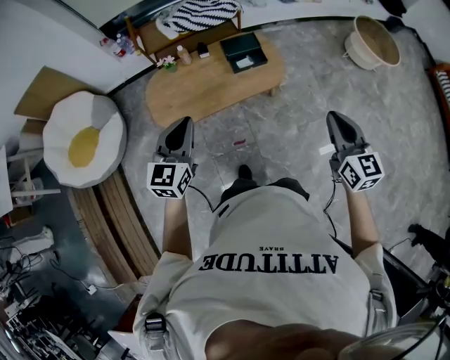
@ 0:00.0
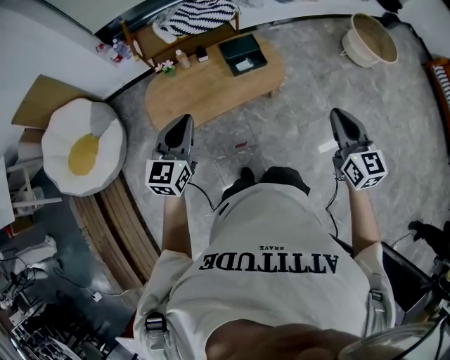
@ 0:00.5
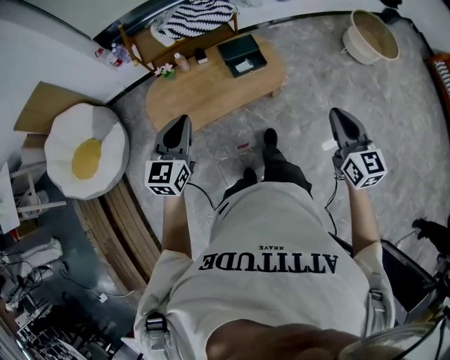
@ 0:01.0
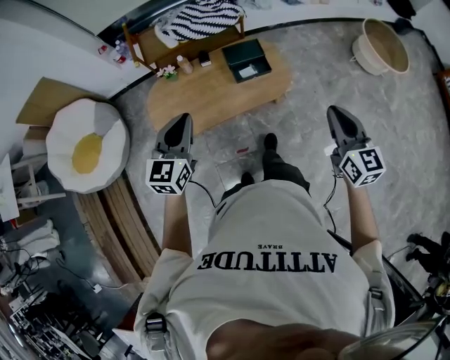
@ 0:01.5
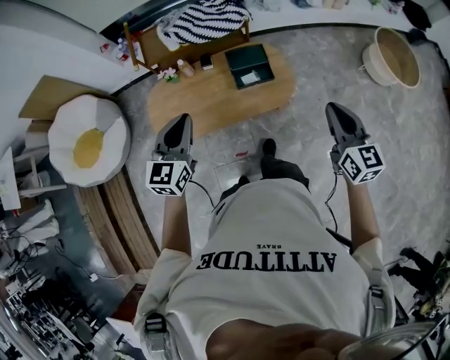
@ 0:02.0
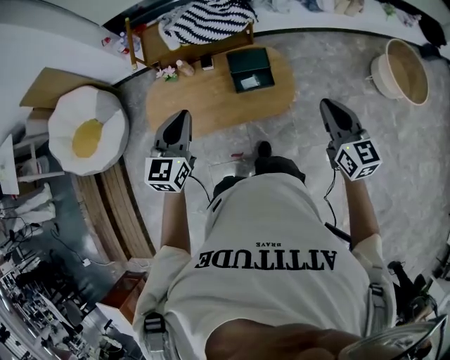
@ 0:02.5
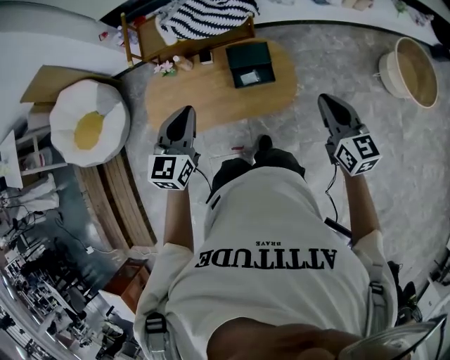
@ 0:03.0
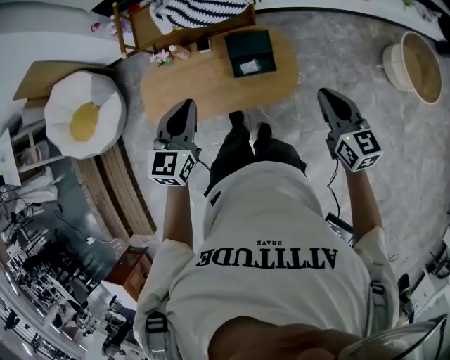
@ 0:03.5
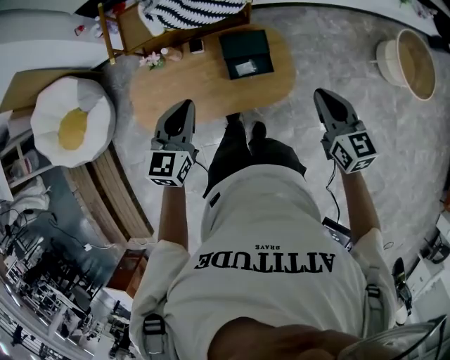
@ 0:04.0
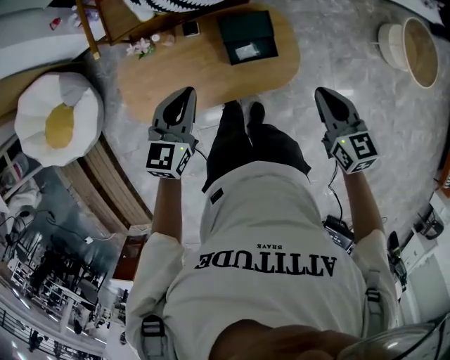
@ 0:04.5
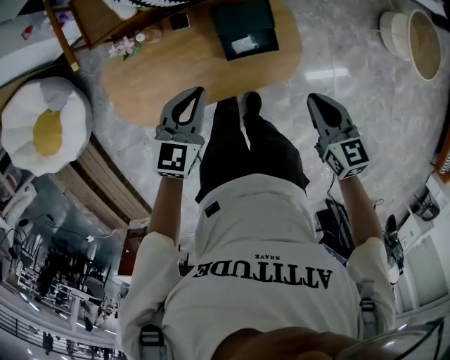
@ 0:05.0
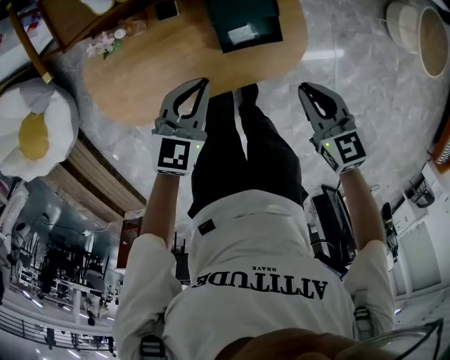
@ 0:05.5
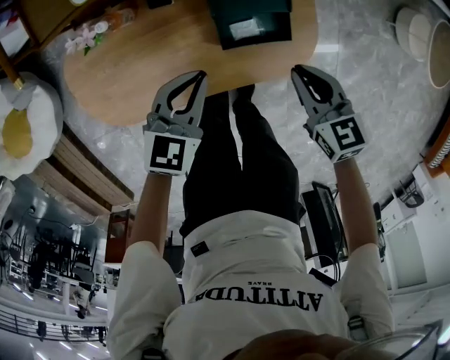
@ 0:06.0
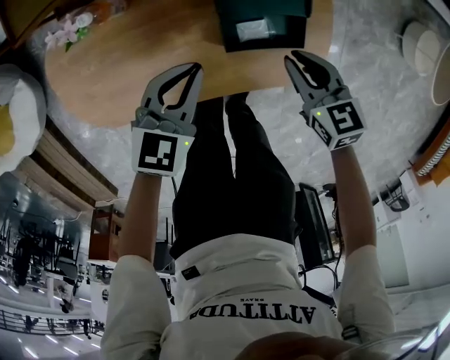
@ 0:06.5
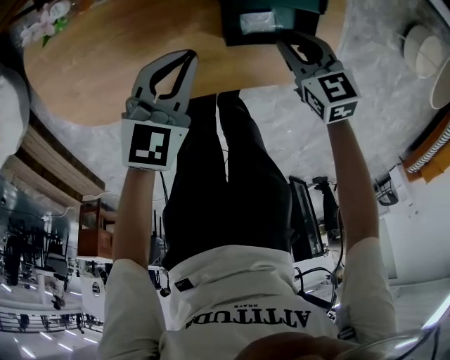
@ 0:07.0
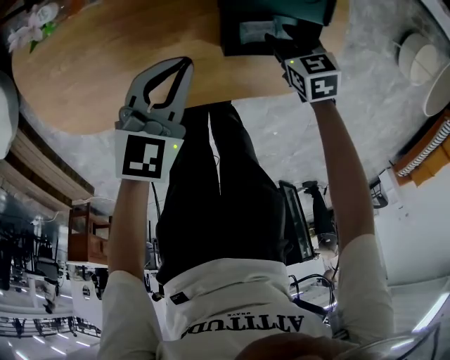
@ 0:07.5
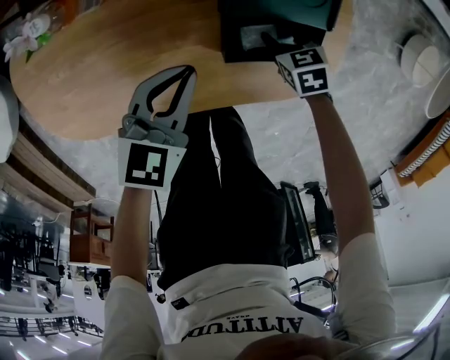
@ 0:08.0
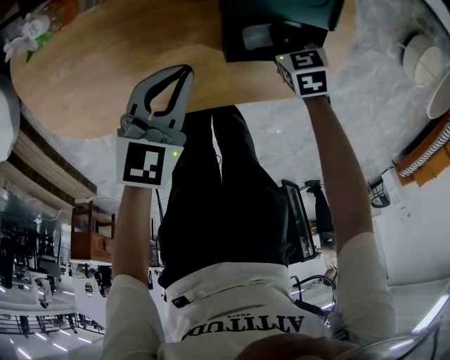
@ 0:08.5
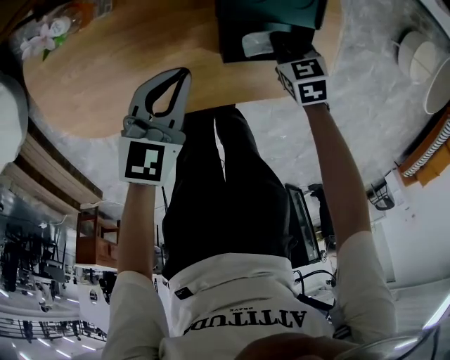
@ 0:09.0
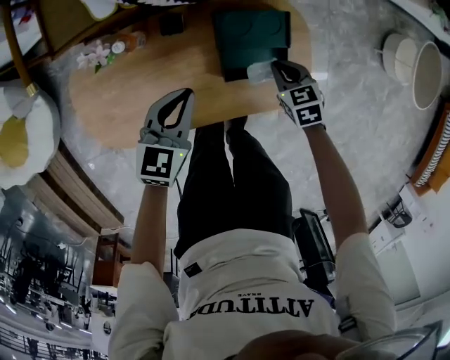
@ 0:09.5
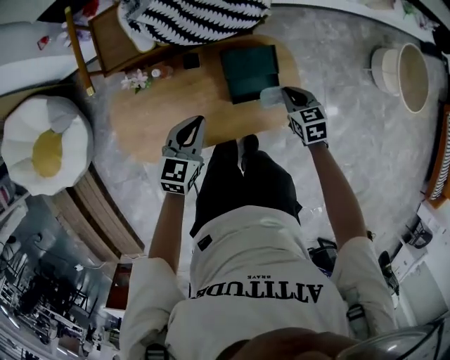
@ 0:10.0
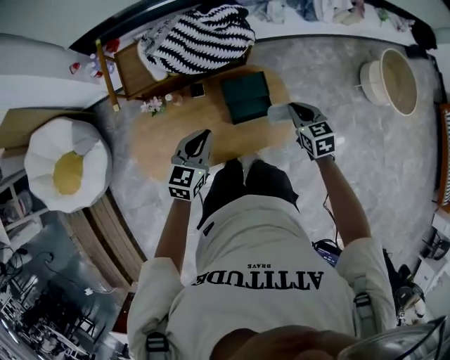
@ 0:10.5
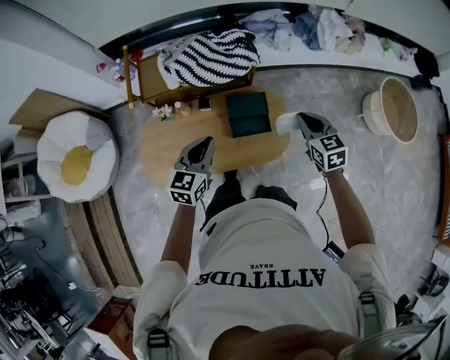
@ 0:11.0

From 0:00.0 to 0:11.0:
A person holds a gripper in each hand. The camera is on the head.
From 0:00.0 to 0:02.0: The grippers both shift forward by some 20 cm.
From 0:02.0 to 0:03.5: The right gripper moves forward and downward, approximately 20 cm; the left gripper heads forward and to the right, covering roughly 15 cm.
From 0:03.5 to 0:05.5: The left gripper moves downward and forward, roughly 35 cm, and swivels approximately 20 degrees; the right gripper heads downward, to the left and forward, covering some 30 cm, and swivels about 20 degrees.
From 0:05.5 to 0:07.5: The right gripper is displaced downward by roughly 40 cm, rotates about 30 degrees, and opens; the left gripper goes roughly 25 cm downward.
From 0:07.5 to 0:09.0: The right gripper closes.
From 0:09.0 to 0:11.0: The two grippers go about 50 cm upward. The right gripper tilts its fingers roughly 30 degrees upward.

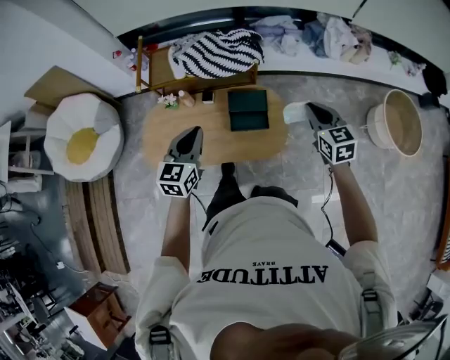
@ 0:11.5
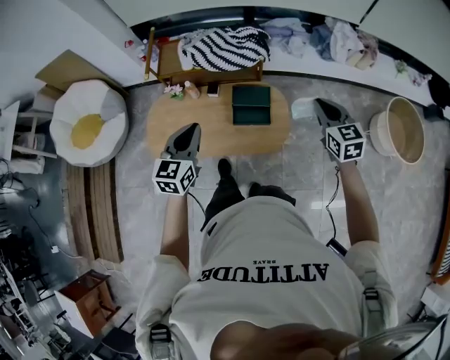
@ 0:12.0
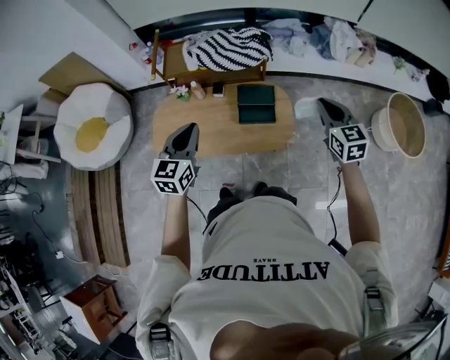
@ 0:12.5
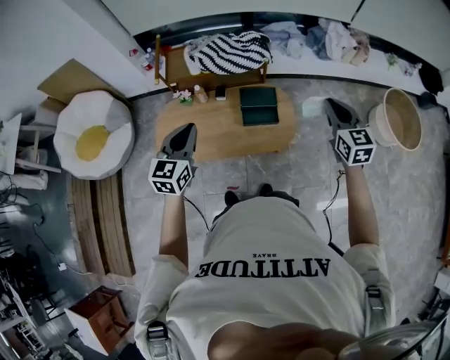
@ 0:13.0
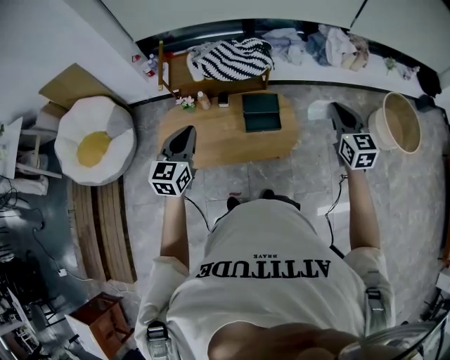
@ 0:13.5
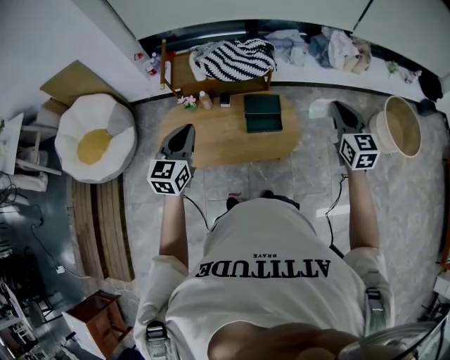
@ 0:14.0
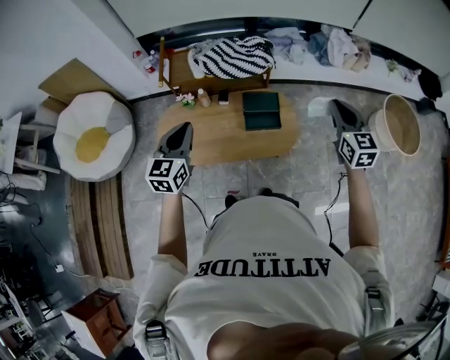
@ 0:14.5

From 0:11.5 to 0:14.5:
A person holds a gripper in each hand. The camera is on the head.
From 0:11.5 to 0:13.0: The left gripper goes some 15 cm backward, to the left and upward; the right gripper shifts approximately 15 cm backward and upward.
From 0:13.0 to 0:14.5: There are only small adjustments of the grippers.

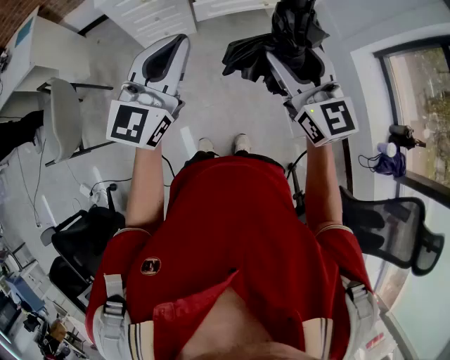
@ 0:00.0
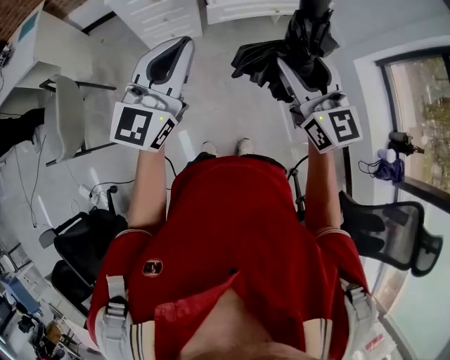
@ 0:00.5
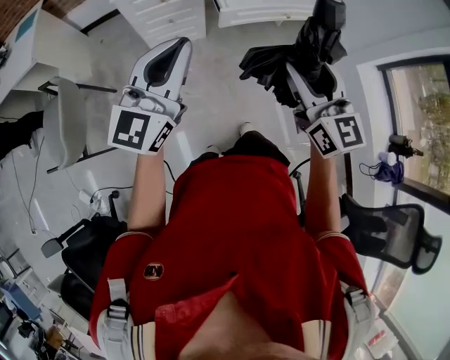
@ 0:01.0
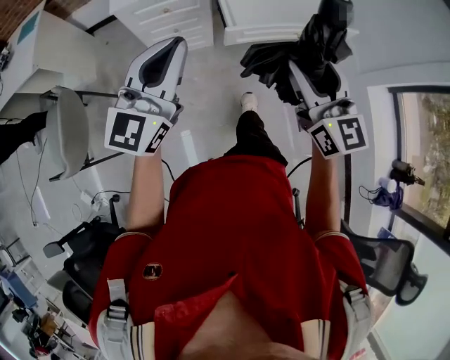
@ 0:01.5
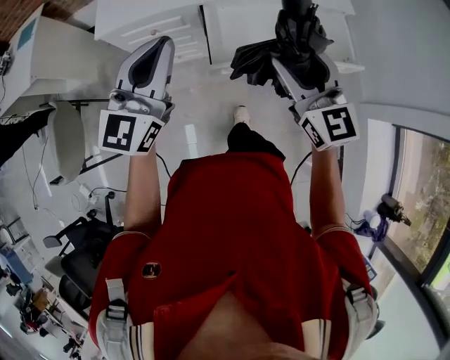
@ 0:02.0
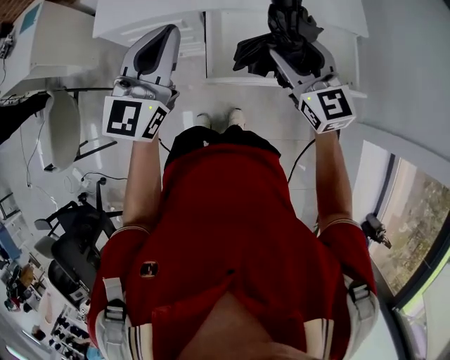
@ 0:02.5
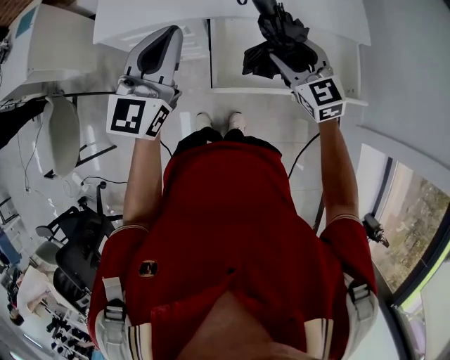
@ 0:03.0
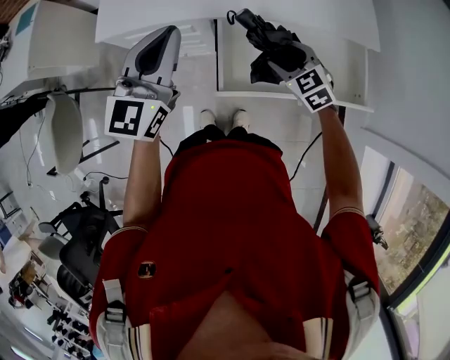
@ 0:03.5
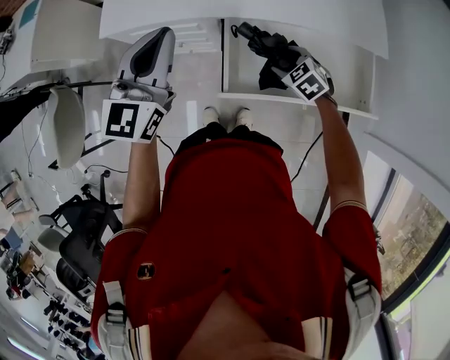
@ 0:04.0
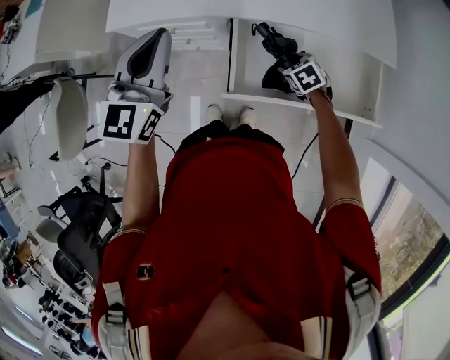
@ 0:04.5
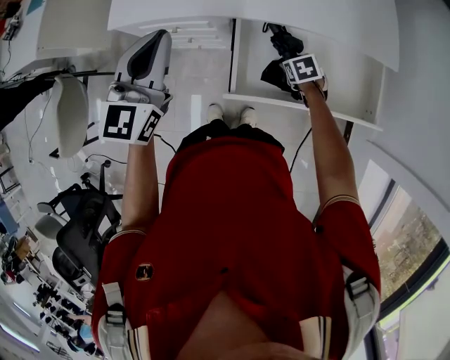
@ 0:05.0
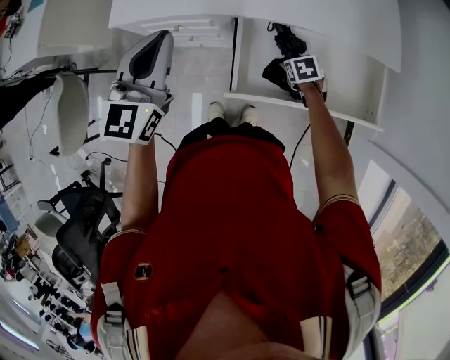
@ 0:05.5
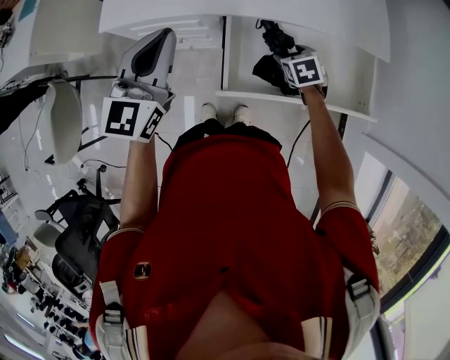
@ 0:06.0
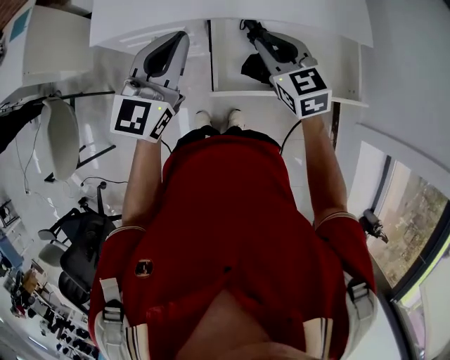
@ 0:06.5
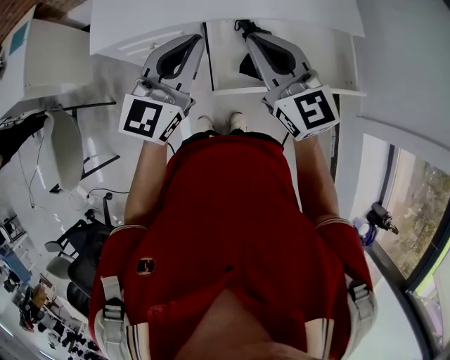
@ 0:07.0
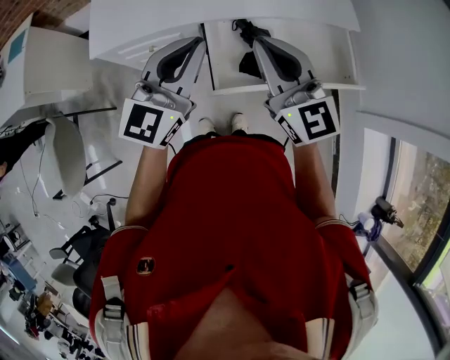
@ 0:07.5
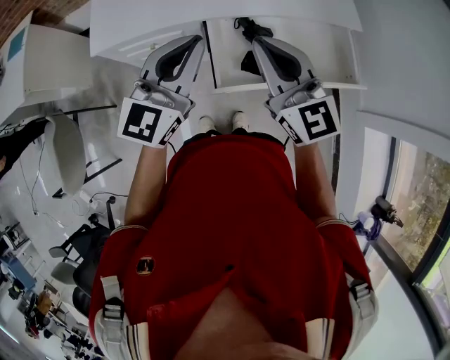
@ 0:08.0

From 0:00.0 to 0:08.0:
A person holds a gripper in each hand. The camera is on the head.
From 0:00.0 to 0:02.0: Both grippers travel together forward, roughly 35 cm.
From 0:02.0 to 0:04.0: The left gripper goes roughly 15 cm forward. Meanwhile the right gripper travels downward and forward by approximately 35 cm, and angles its fingers downward, by approximately 50 degrees.
From 0:04.0 to 0:06.0: The right gripper reaches about 10 cm downward, then returns, and swivels about 30 degrees.
From 0:06.0 to 0:08.0: The right gripper moves upward, roughly 30 cm, points its fingers some 60 degrees further upward, and closes its fingers; the left gripper travels to the right and backward by about 10 cm.

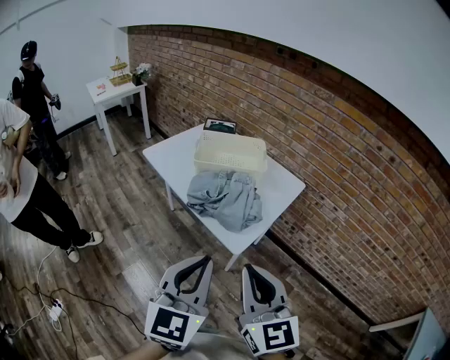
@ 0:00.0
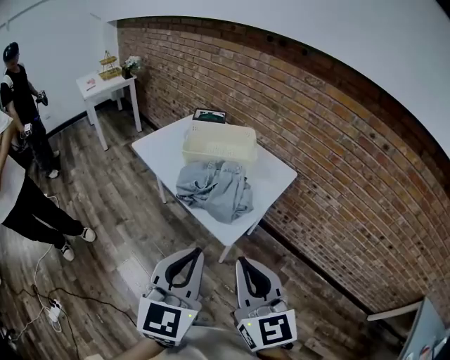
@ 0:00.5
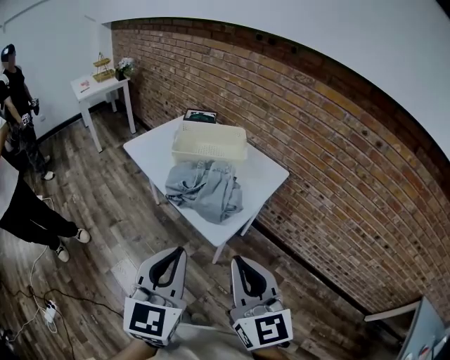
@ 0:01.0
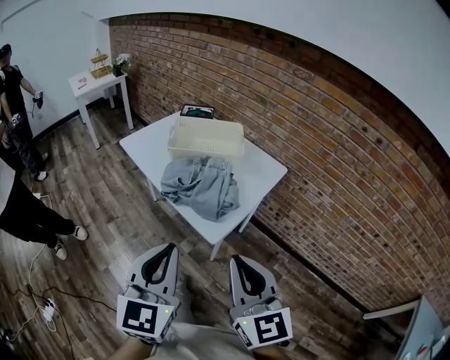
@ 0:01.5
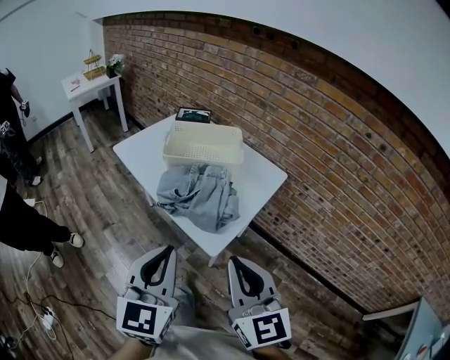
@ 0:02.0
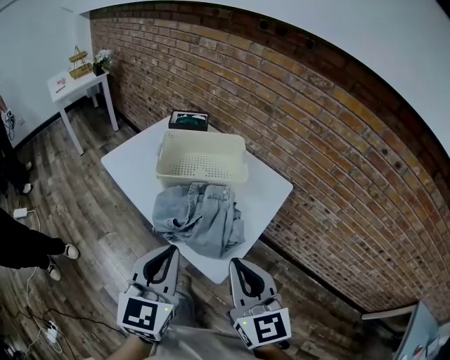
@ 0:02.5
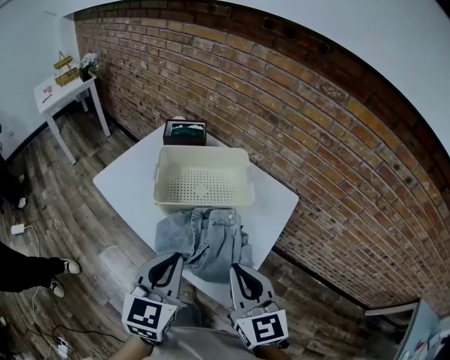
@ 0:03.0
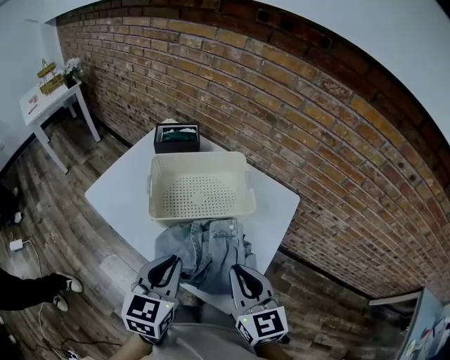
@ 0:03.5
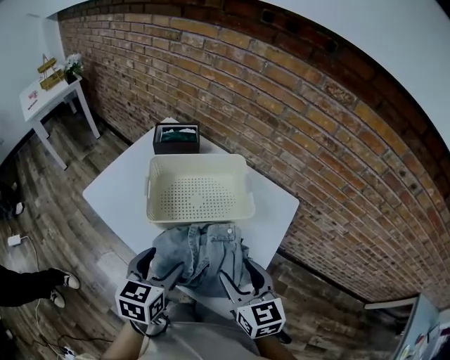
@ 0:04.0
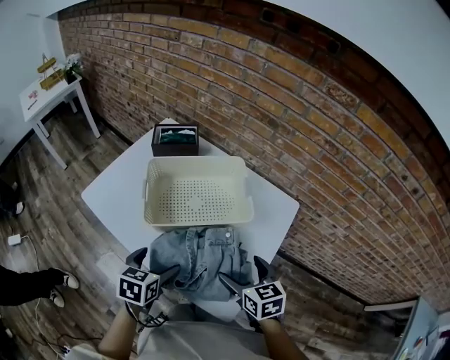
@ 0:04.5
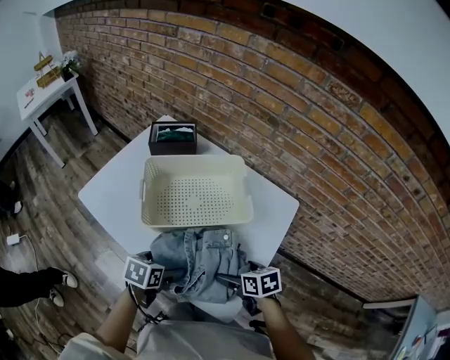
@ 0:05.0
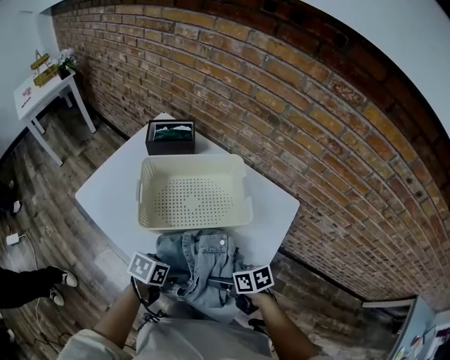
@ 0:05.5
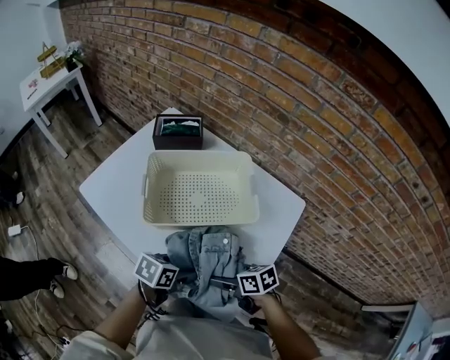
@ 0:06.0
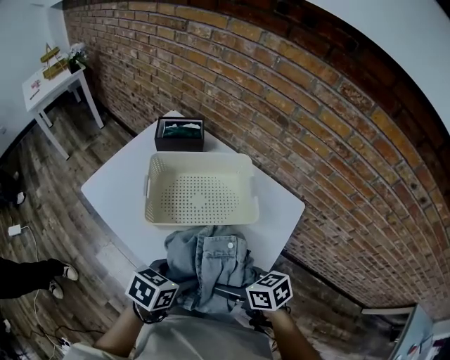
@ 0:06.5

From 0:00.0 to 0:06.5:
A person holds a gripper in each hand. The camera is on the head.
From 0:00.0 to 0:02.0: Both grippers travel together forward, roughly 5 cm.
From 0:02.0 to 0:04.5: The grippers both shift forward and downward by some 35 cm. The left gripper angles its fingers downward, by roughly 40 degrees, and opens its fingers. The right gripper tilts its fingers some 30 degrees downward, and opens up.
From 0:04.5 to 0:06.5: The right gripper travels downward and back again, some 10 cm each way, and rotates some 30 degrees. The left gripper moves approximately 10 cm downward and comes back.
